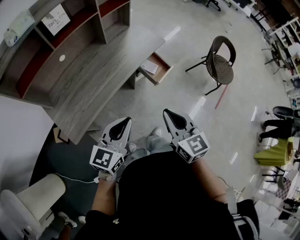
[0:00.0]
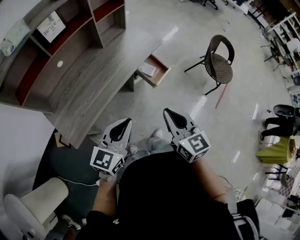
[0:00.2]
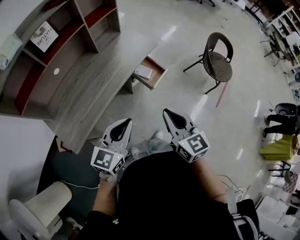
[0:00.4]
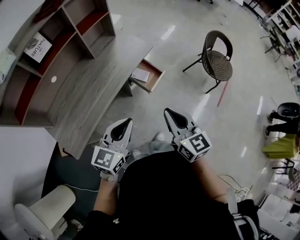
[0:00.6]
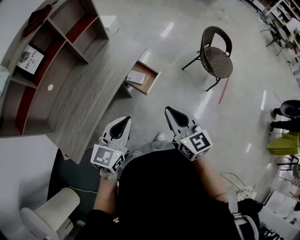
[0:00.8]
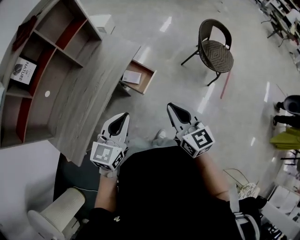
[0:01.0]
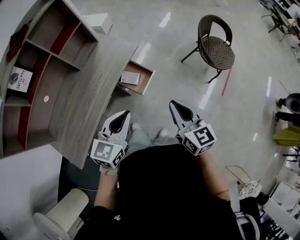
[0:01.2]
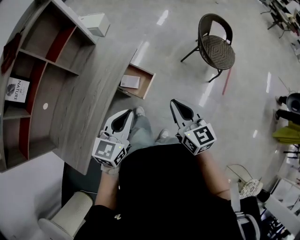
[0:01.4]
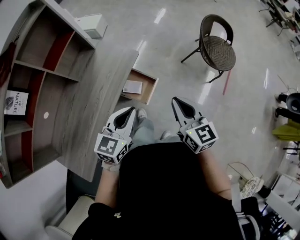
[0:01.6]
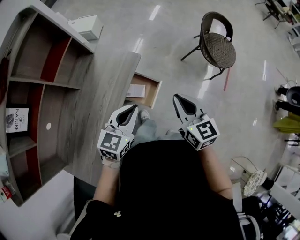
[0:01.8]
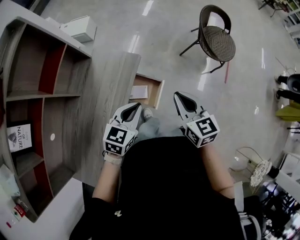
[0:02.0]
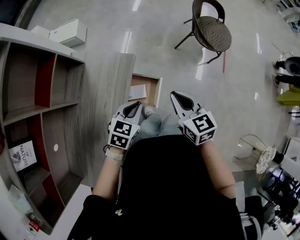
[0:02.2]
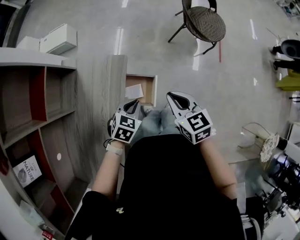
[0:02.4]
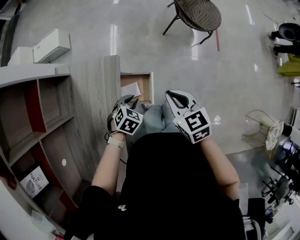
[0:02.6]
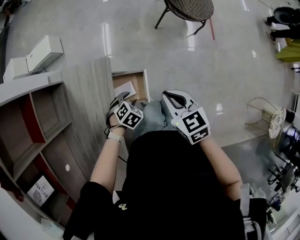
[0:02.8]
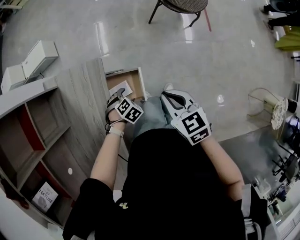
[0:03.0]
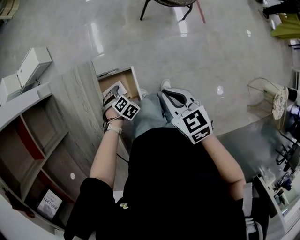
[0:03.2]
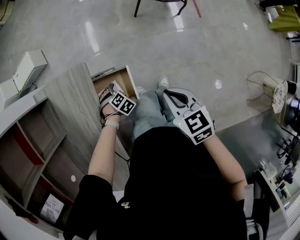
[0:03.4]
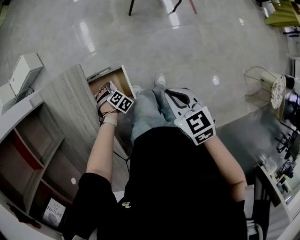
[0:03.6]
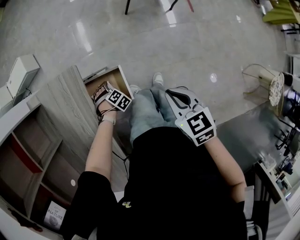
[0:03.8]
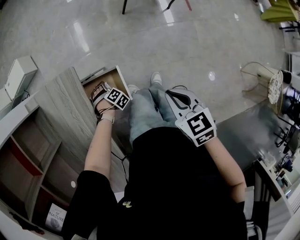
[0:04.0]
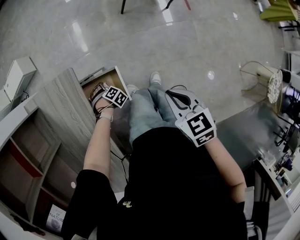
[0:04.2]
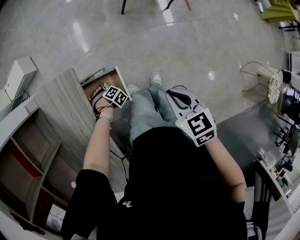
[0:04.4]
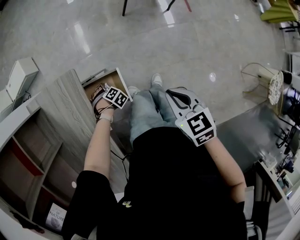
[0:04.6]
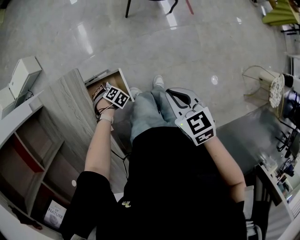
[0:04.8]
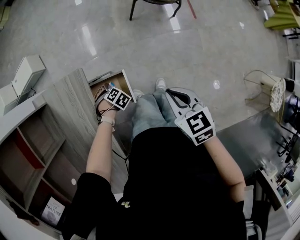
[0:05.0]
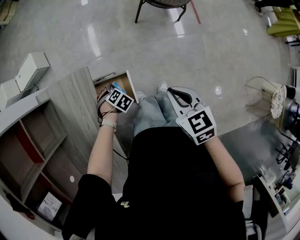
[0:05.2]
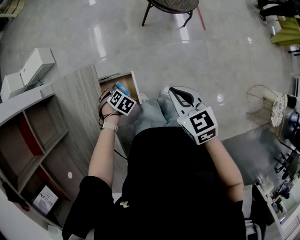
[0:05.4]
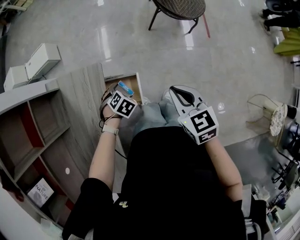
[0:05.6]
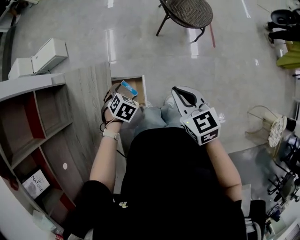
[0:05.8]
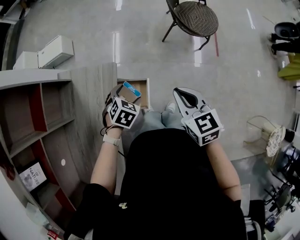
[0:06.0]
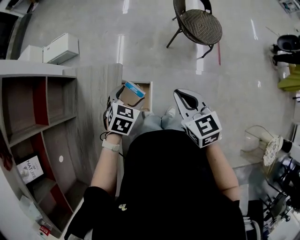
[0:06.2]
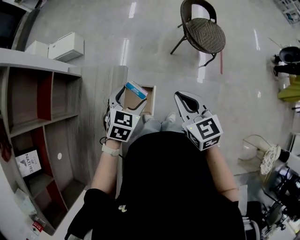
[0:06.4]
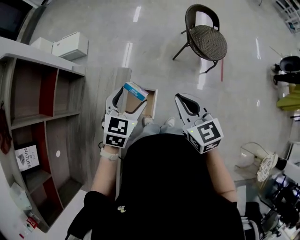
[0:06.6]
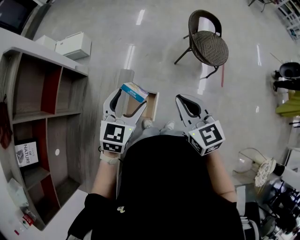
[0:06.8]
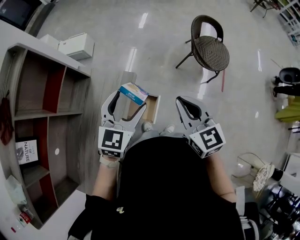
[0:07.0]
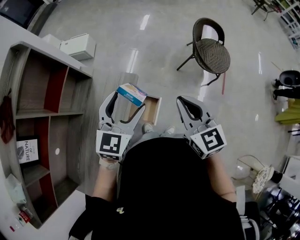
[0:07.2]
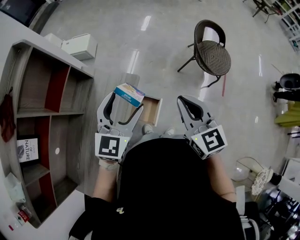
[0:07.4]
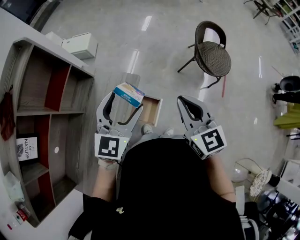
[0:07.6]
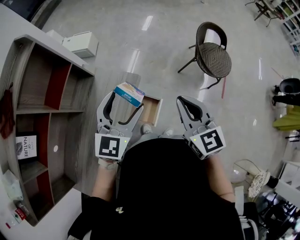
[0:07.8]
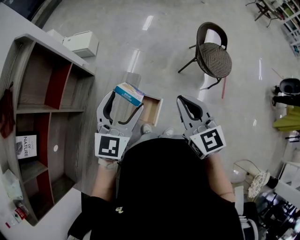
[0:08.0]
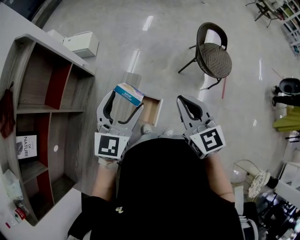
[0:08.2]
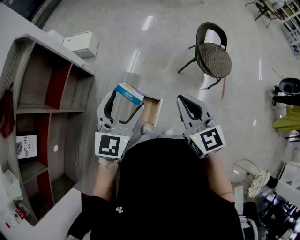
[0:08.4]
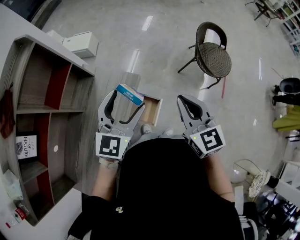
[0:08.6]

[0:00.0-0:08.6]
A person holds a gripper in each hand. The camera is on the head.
0:00.0 to 0:01.4: The grippers both shift forward and to the right by roughly 30 cm.
0:01.4 to 0:02.8: The left gripper goes approximately 30 cm downward, points its fingers approximately 50 degrees further downward, and opens; the right gripper heads downward, covering some 15 cm, and changes its angle by about 30 degrees.
0:02.8 to 0:04.4: The left gripper is displaced downward by roughly 20 cm, turns by about 30 degrees, and opens up; the right gripper changes place by about 10 cm.
0:04.4 to 0:05.8: The left gripper shifts roughly 25 cm upward, and changes its angle by roughly 40 degrees, while the right gripper travels upward by some 10 cm.
0:05.8 to 0:07.2: The left gripper travels upward by roughly 30 cm, and tips its fingers upward by approximately 50 degrees, while the right gripper moves upward and to the left, approximately 15 cm, and rotates some 20 degrees.
0:07.2 to 0:08.6: The grippers stay close to where they were, moving slightly.

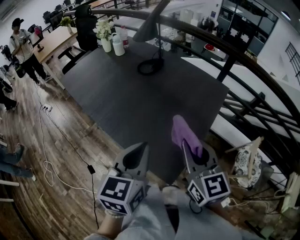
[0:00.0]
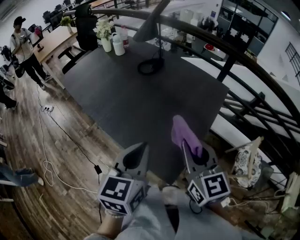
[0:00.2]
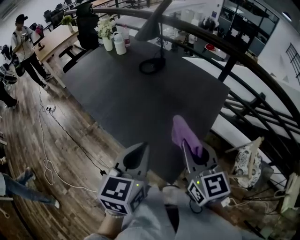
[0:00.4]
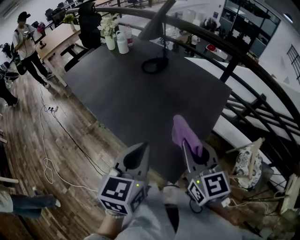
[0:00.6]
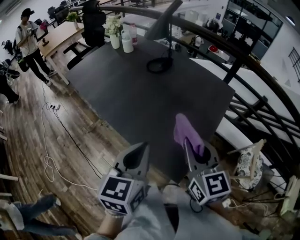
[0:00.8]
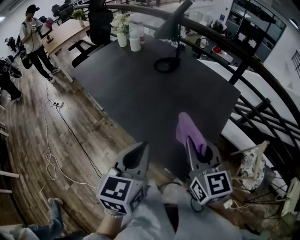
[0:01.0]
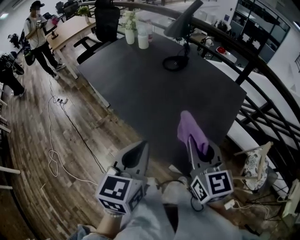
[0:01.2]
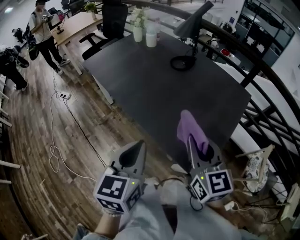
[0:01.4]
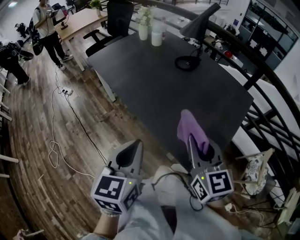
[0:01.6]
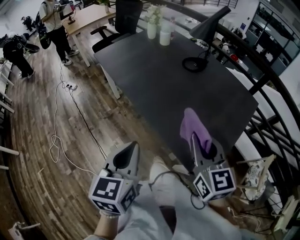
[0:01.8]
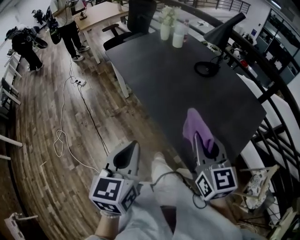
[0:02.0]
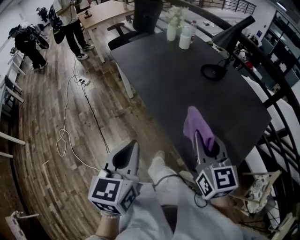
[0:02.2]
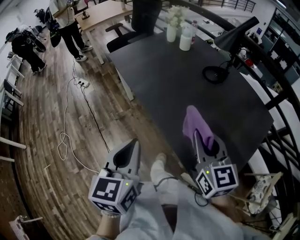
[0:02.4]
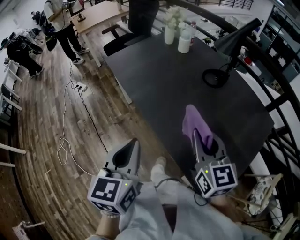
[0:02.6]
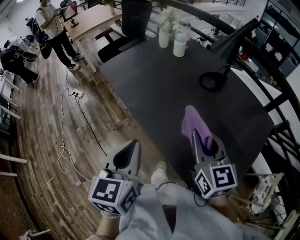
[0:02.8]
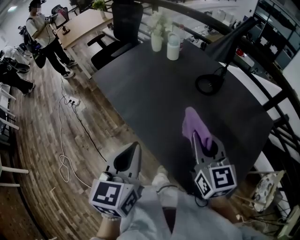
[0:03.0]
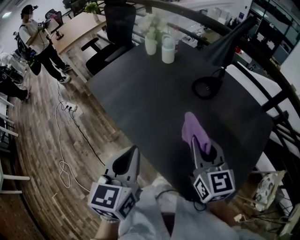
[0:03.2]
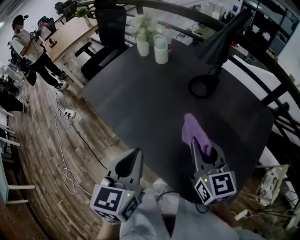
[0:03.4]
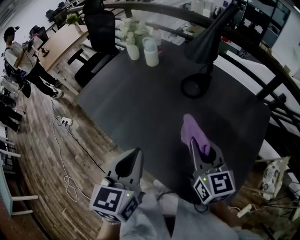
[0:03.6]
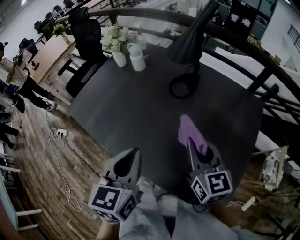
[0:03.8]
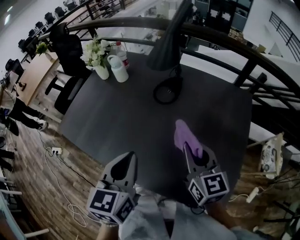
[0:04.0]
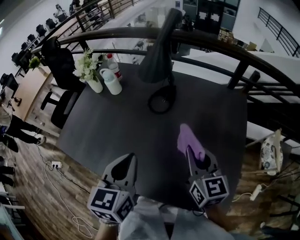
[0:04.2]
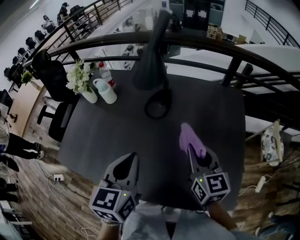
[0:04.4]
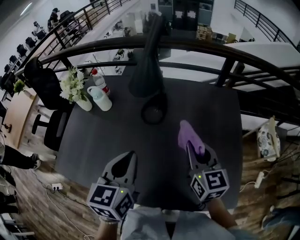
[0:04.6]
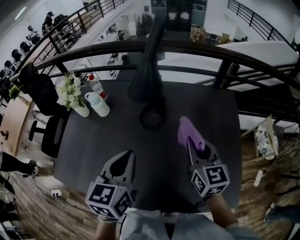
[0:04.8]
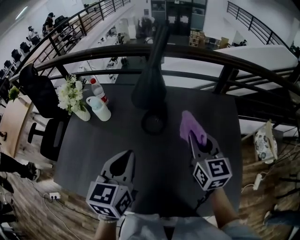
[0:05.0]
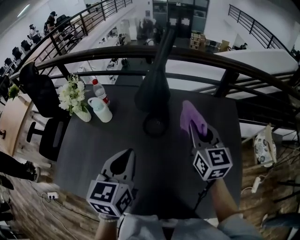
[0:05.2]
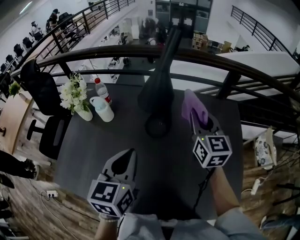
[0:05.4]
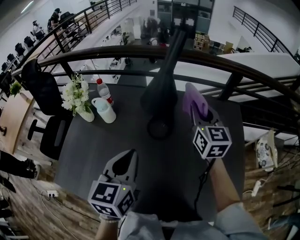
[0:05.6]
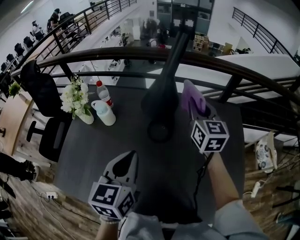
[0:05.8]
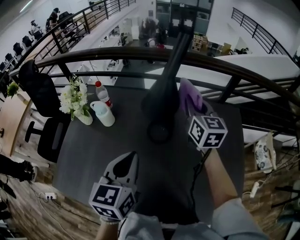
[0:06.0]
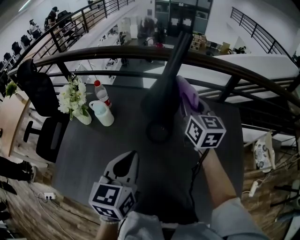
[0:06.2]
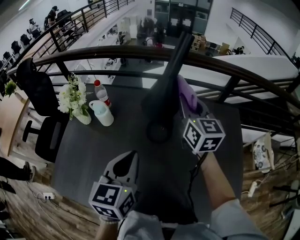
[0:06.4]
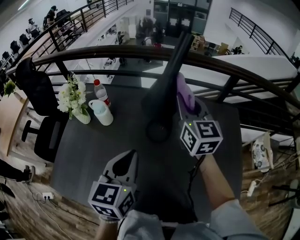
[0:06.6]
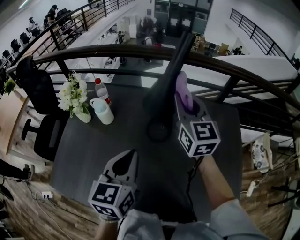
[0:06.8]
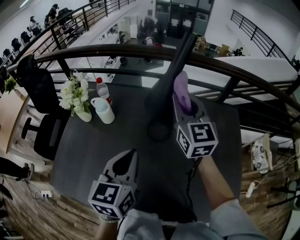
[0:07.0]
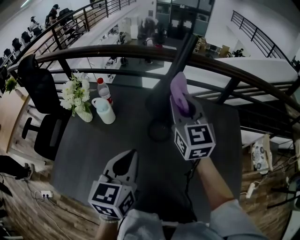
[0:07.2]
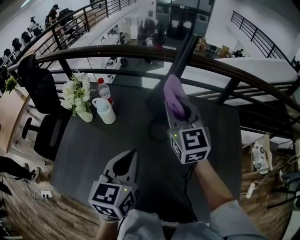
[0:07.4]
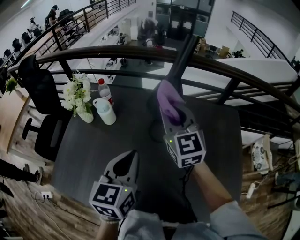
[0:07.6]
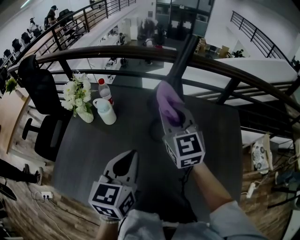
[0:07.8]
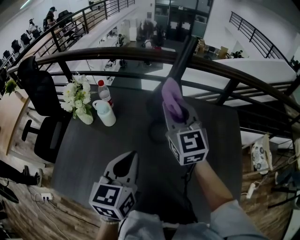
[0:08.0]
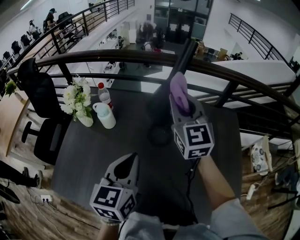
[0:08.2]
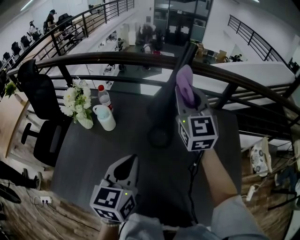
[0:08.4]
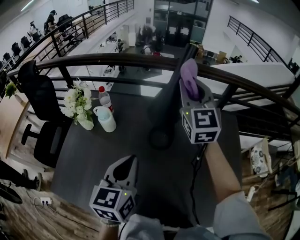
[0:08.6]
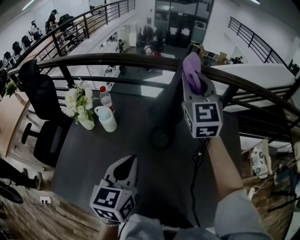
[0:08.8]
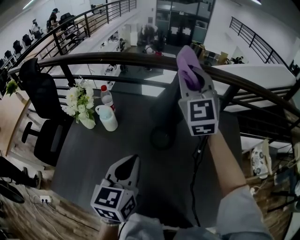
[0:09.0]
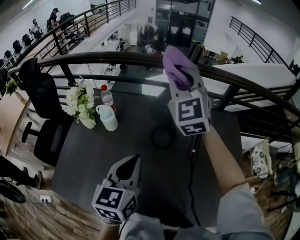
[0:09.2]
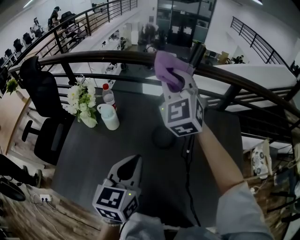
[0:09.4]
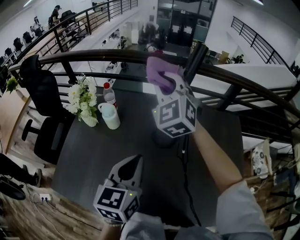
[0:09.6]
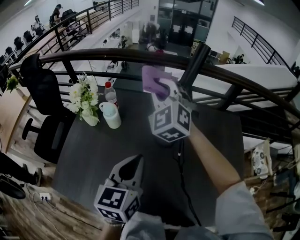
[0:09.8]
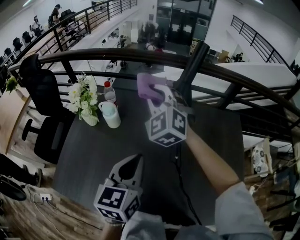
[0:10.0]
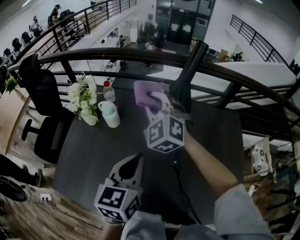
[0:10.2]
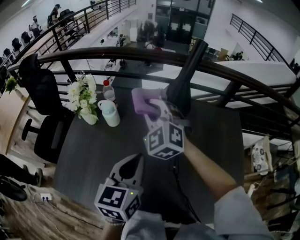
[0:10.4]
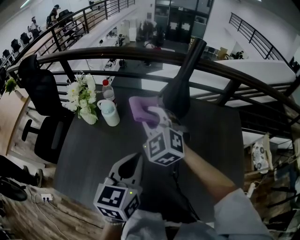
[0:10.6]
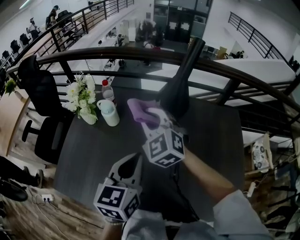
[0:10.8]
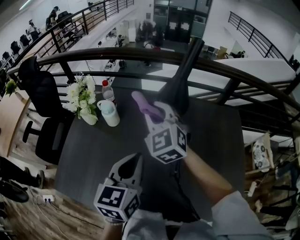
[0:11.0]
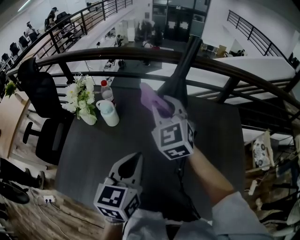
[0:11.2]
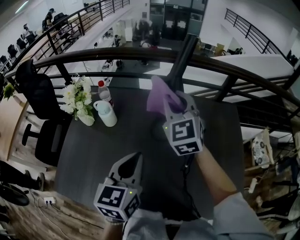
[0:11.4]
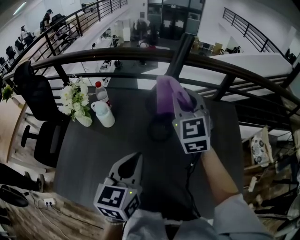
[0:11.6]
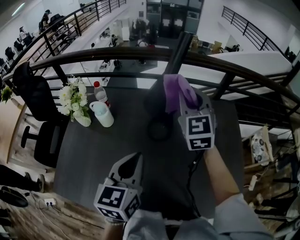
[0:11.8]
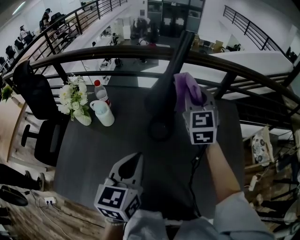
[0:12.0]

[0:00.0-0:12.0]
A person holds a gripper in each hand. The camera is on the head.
0:00.0 to 0:01.6: Both grippers travel together to the left, roughly 15 cm.
0:01.6 to 0:03.0: The grippers both shift forward by about 20 cm.
0:03.0 to 0:04.4: The right gripper changes place by approximately 15 cm, and turns by about 30 degrees. Meanwhile the left gripper moves some 25 cm, and rotates approximately 30 degrees.
0:04.4 to 0:06.0: The right gripper travels forward by about 25 cm, while the left gripper moves forward and to the left, about 15 cm.
0:06.0 to 0:07.6: The right gripper moves to the left and backward, approximately 15 cm, and changes its angle by about 20 degrees.
0:07.6 to 0:09.0: The right gripper moves upward and forward, some 15 cm, and changes its angle by approximately 20 degrees.
0:09.0 to 0:10.4: The right gripper moves downward and to the left, roughly 20 cm, and swivels approximately 30 degrees.
0:10.4 to 0:12.0: The right gripper is displaced to the right by approximately 20 cm, and changes its angle by about 40 degrees.

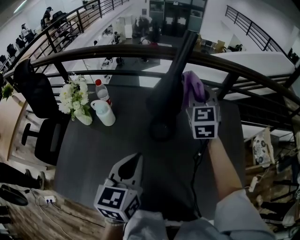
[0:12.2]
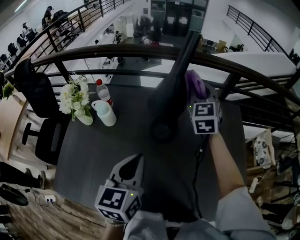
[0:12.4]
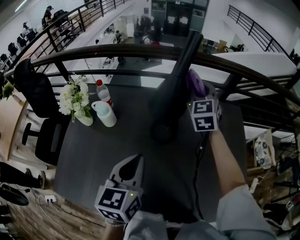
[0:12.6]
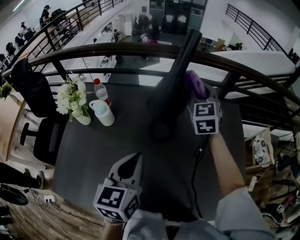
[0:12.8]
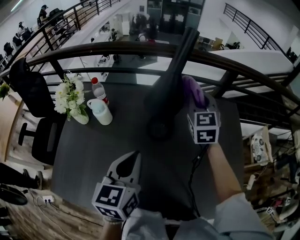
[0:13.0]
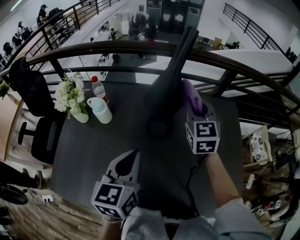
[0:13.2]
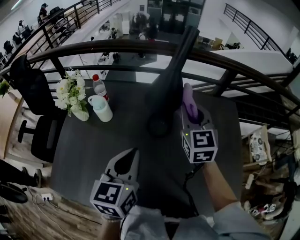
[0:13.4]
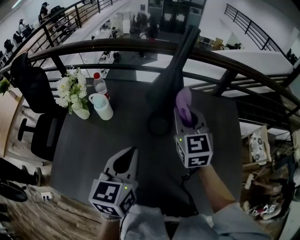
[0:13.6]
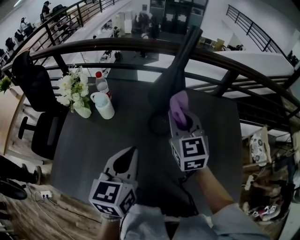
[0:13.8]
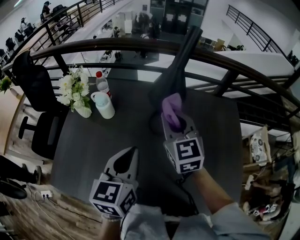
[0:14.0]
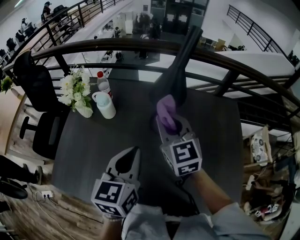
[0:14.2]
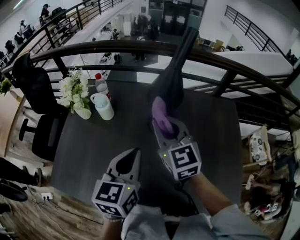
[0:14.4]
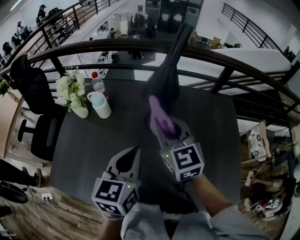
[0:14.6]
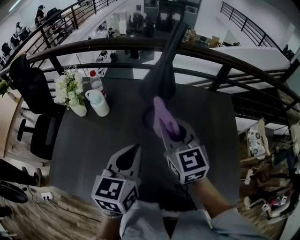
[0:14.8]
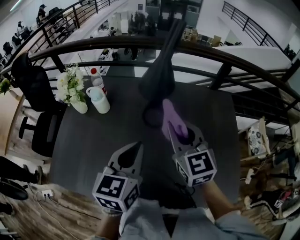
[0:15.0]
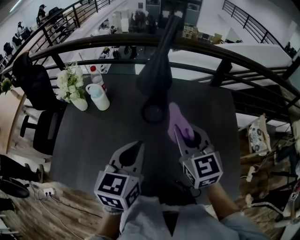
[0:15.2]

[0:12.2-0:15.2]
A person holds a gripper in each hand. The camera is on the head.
0:12.2 to 0:13.8: The right gripper goes approximately 15 cm backward and to the left.
0:13.8 to 0:15.2: The right gripper goes approximately 15 cm backward and to the right. The left gripper shifts about 5 cm to the right.
